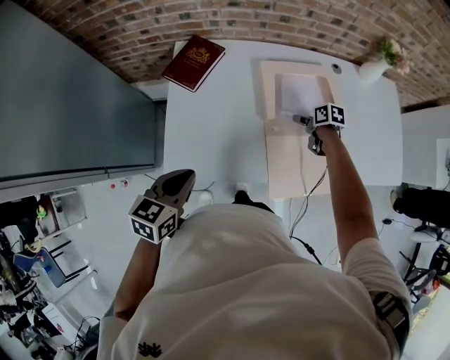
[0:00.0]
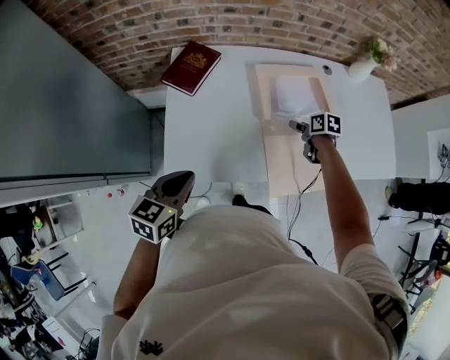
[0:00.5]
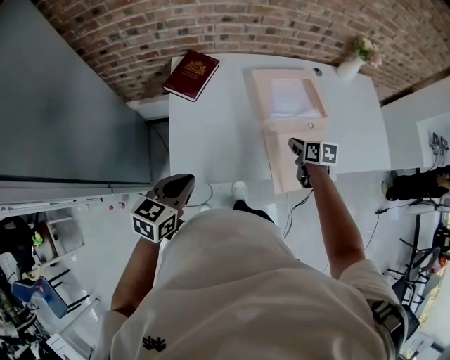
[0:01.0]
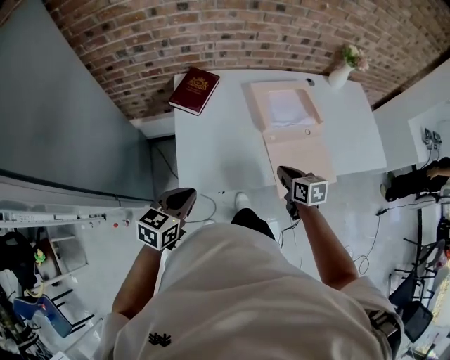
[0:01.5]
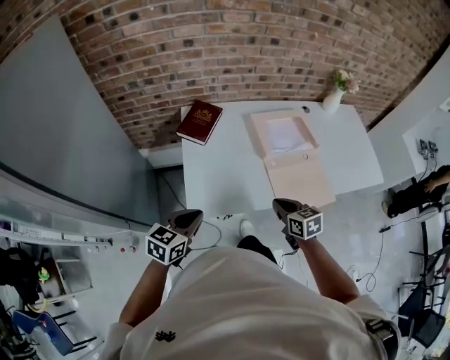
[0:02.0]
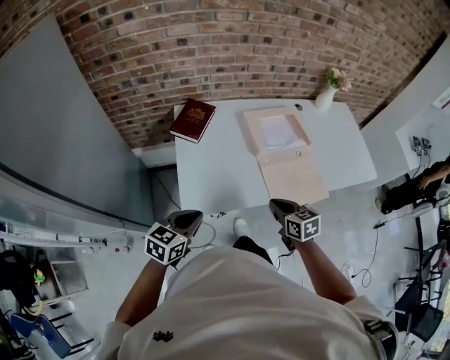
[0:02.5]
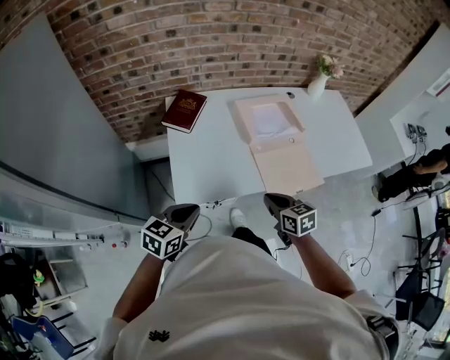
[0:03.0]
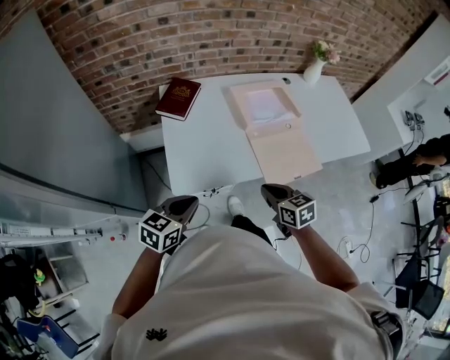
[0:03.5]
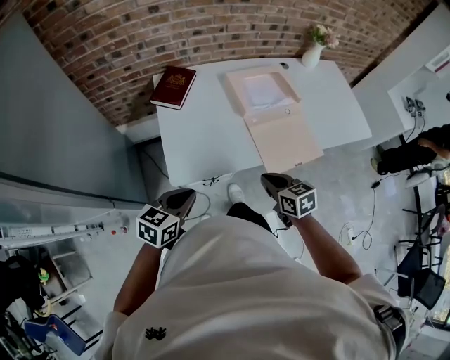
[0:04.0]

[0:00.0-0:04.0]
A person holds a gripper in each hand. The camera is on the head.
0:00.0 to 0:02.0: The right gripper goes roughly 40 cm backward, to the left and upward, turns by about 30 degrees, and closes up; the left gripper heads to the left and backward, covering approximately 15 cm.
0:02.0 to 0:04.0: The right gripper is displaced backward by approximately 5 cm, while the left gripper ends up roughly 5 cm from where it was.

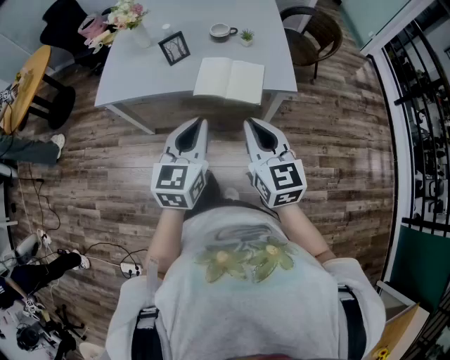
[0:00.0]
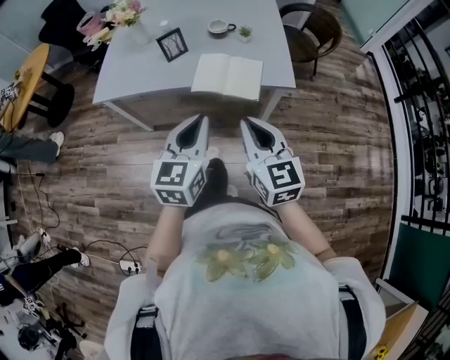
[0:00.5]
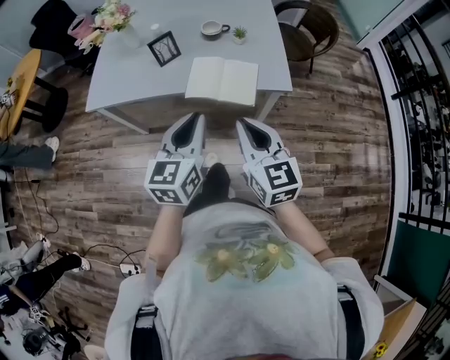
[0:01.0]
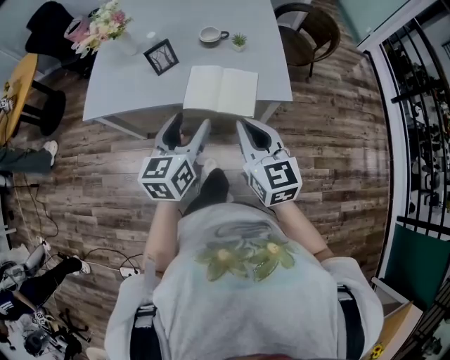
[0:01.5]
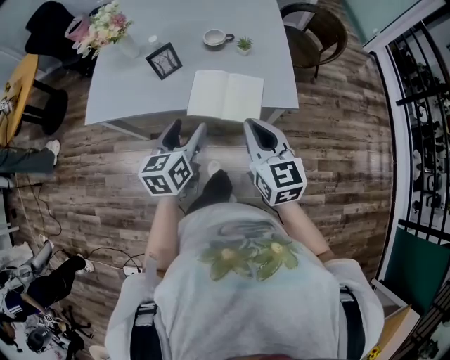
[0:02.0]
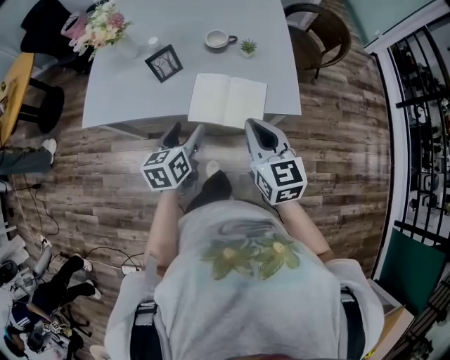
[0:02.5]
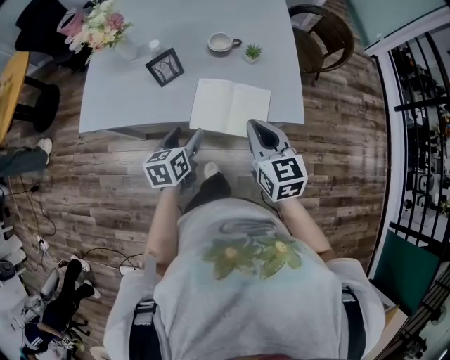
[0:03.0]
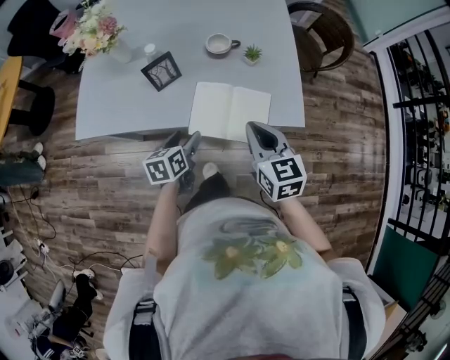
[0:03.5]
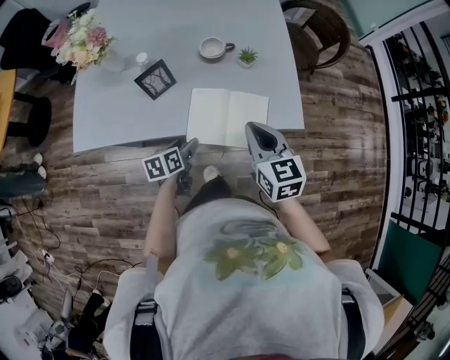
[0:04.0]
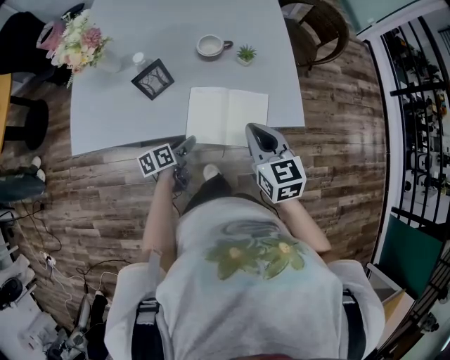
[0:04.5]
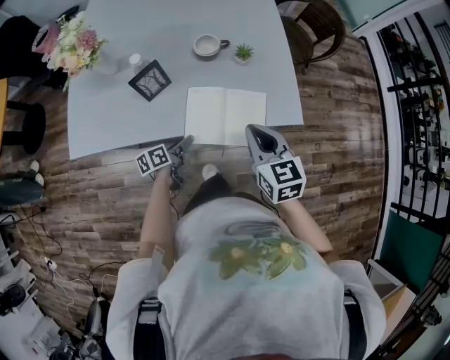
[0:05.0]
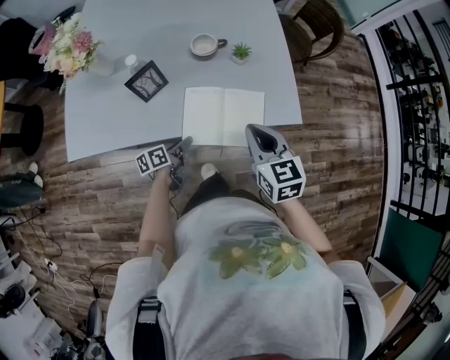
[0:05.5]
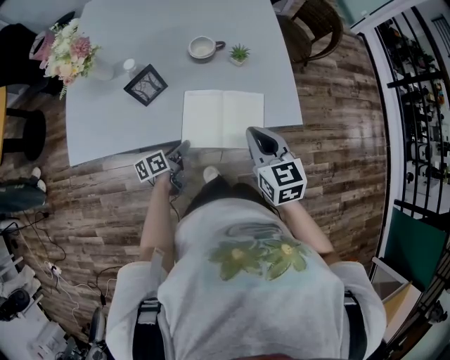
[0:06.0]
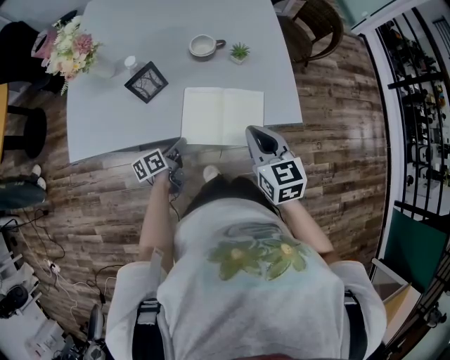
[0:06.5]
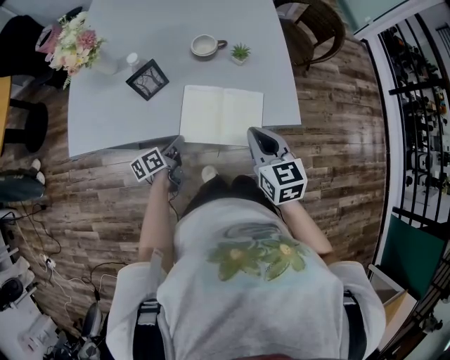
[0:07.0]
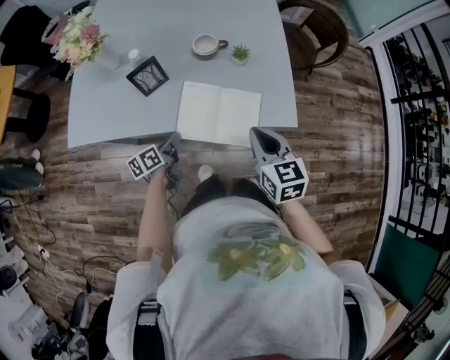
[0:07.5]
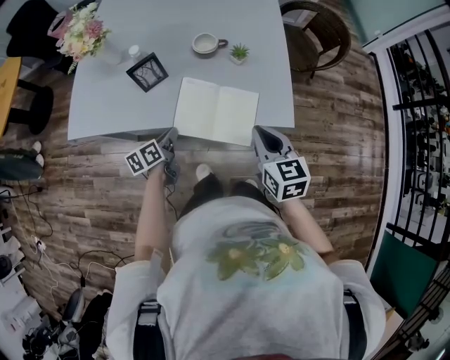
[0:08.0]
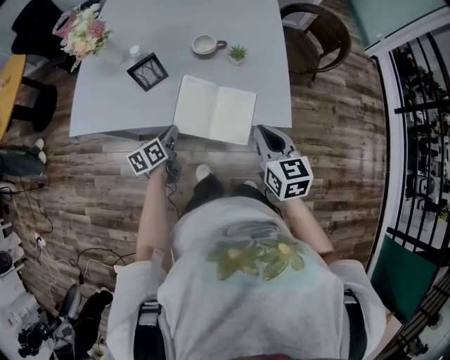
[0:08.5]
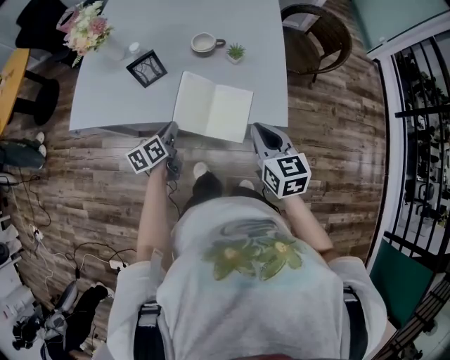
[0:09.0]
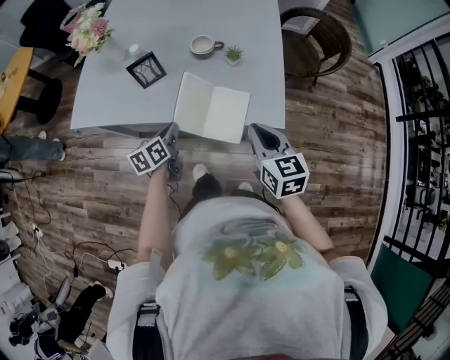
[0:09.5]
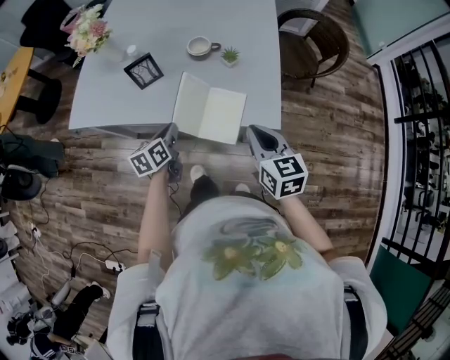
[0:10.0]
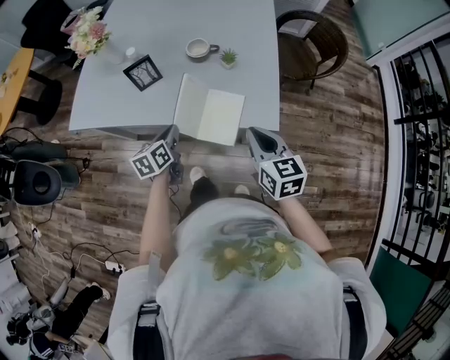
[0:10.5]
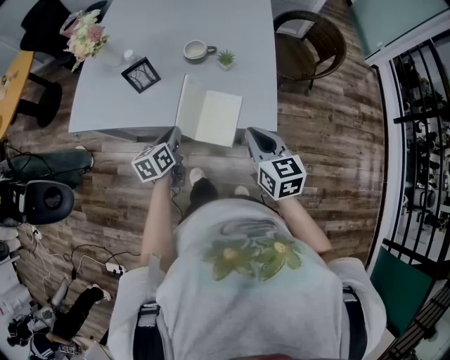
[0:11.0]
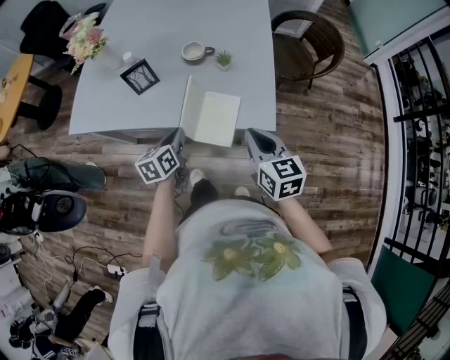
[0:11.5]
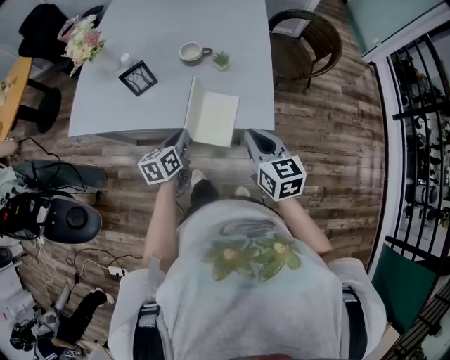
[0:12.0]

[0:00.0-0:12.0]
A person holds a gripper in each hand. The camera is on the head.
0:00.0 to 0:02.0: The right gripper goes approximately 10 cm forward. Meanwhile the left gripper goes approximately 15 cm forward and downward, swivels roughly 20 degrees, and opens up.
0:02.0 to 0:04.0: The right gripper goes approximately 15 cm forward and downward; the left gripper travels downward and forward by roughly 20 cm, and turns by about 30 degrees.
0:04.0 to 0:06.0: The left gripper heads downward, covering roughly 5 cm, rotates roughly 20 degrees, and closes up.
0:06.0 to 0:08.0: The right gripper moves to the right, approximately 5 cm, while the left gripper heads upward, covering about 5 cm, and closes its fingers.
0:08.0 to 0:10.0: The left gripper is displaced upward by approximately 5 cm.
0:10.0 to 0:12.0: The left gripper travels to the right by roughly 5 cm.

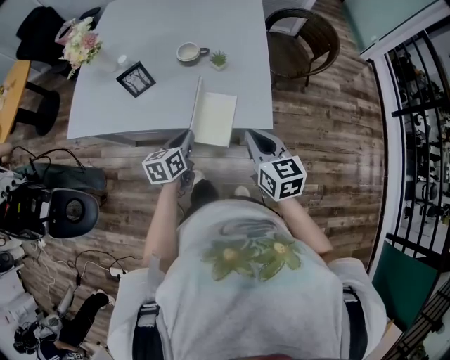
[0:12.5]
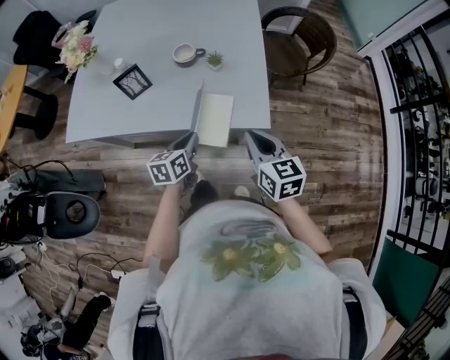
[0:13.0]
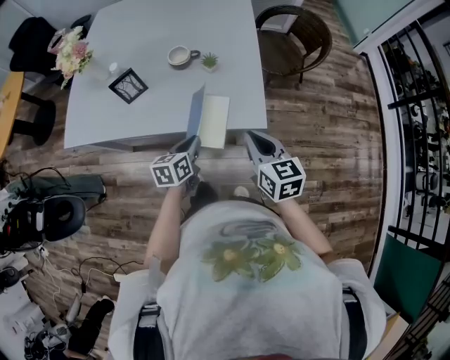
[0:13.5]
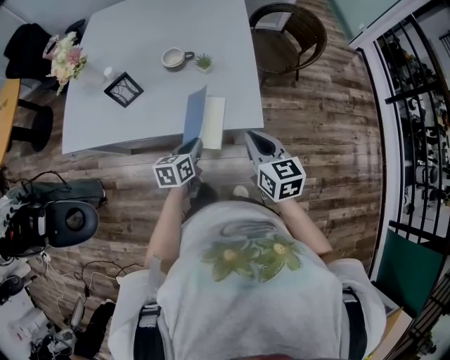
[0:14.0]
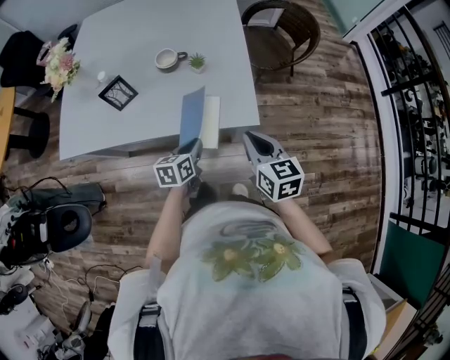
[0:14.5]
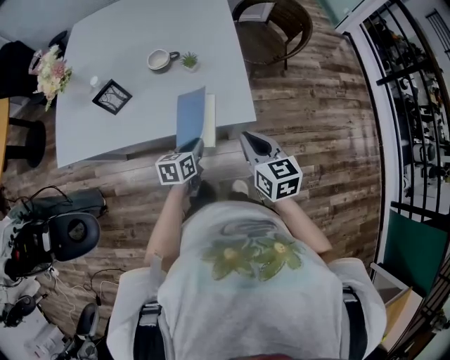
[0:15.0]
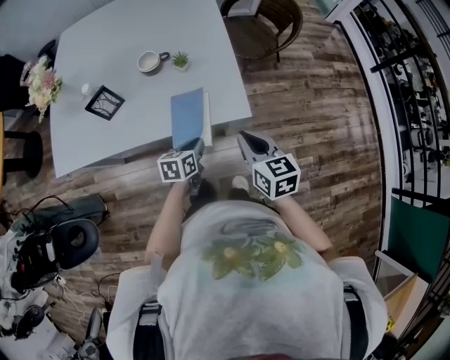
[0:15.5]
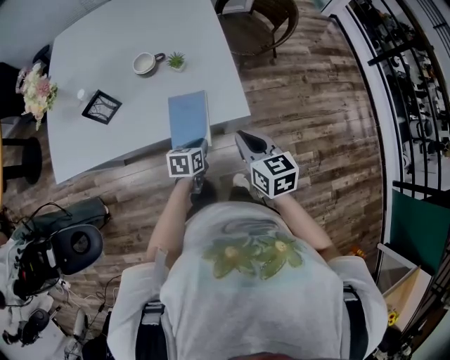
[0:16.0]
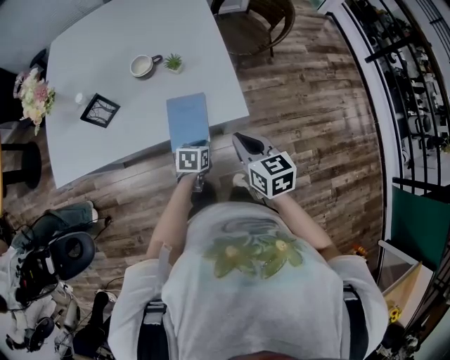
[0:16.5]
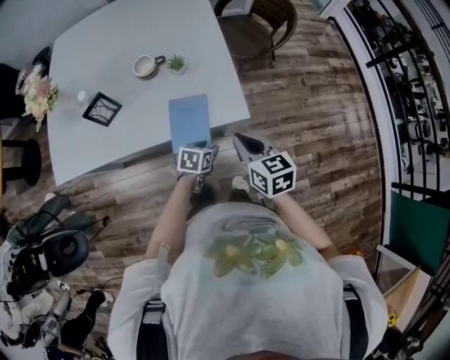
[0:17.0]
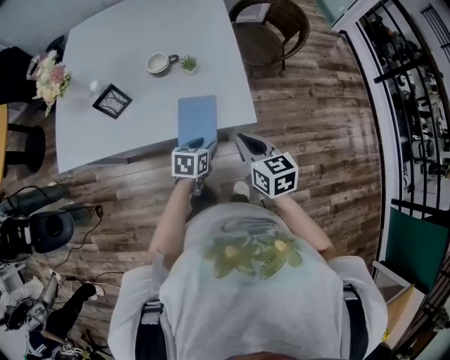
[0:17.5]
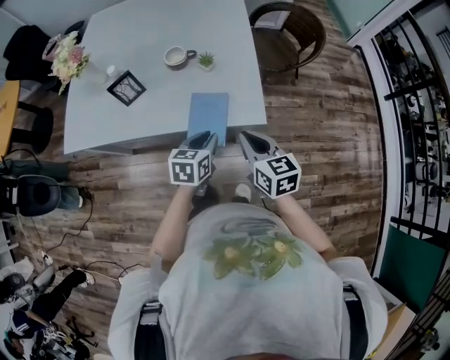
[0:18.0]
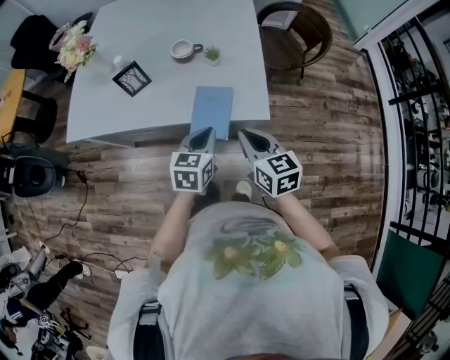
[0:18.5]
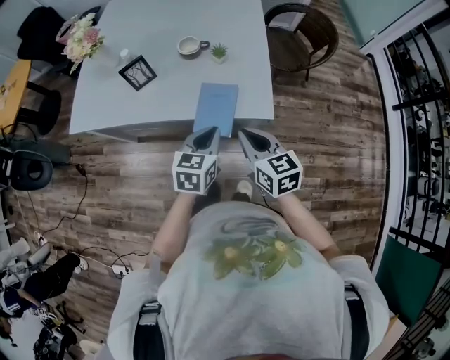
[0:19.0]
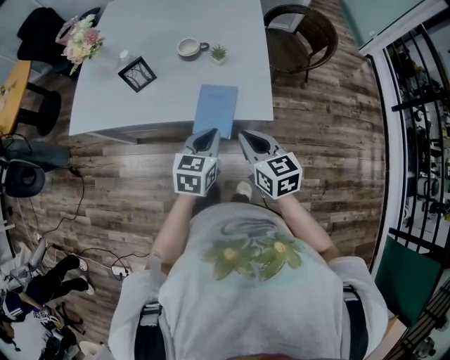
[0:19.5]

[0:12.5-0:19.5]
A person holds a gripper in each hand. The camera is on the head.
0:12.5 to 0:14.5: The left gripper goes roughly 5 cm to the right.
0:14.5 to 0:16.0: The left gripper travels downward by some 5 cm.
0:16.0 to 0:17.5: The left gripper opens its fingers.
0:17.5 to 0:19.5: The left gripper travels upward by some 15 cm, changes its angle by roughly 20 degrees, and closes. Meanwhile the right gripper shifts by about 5 cm.

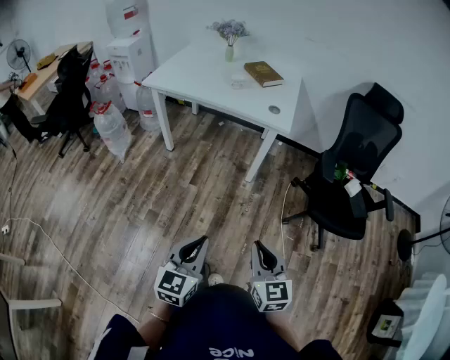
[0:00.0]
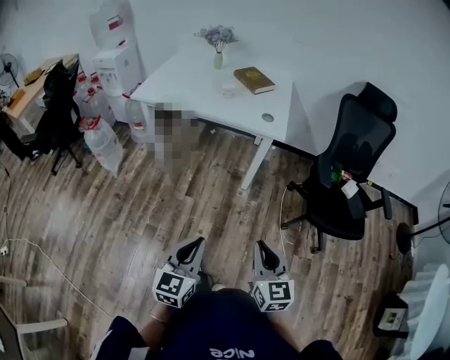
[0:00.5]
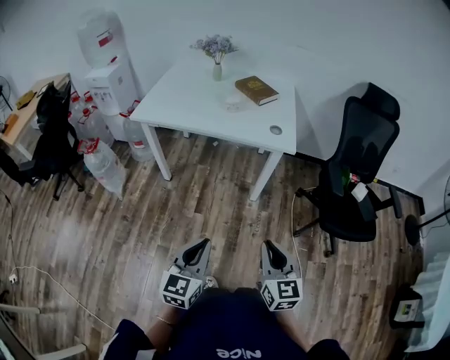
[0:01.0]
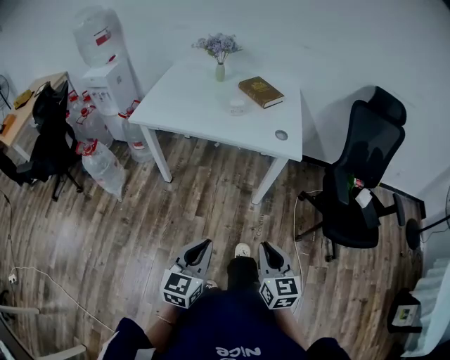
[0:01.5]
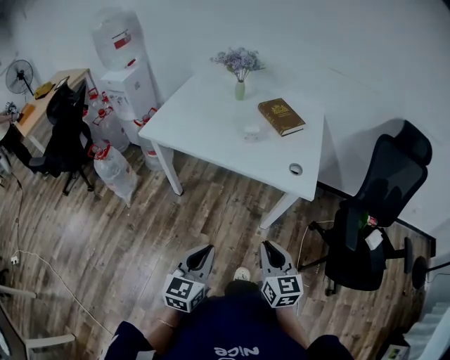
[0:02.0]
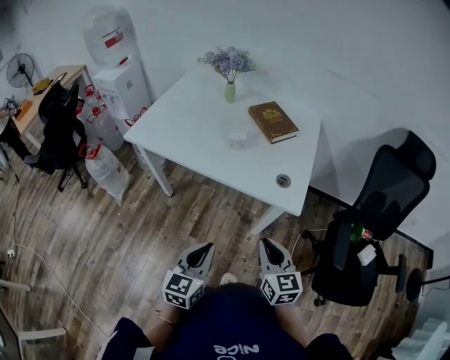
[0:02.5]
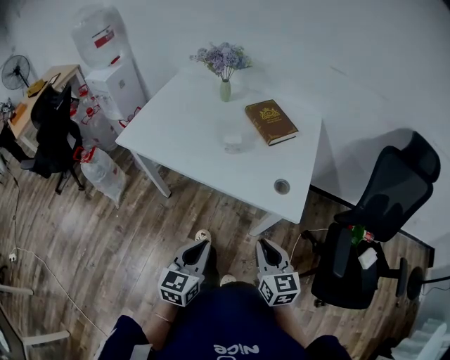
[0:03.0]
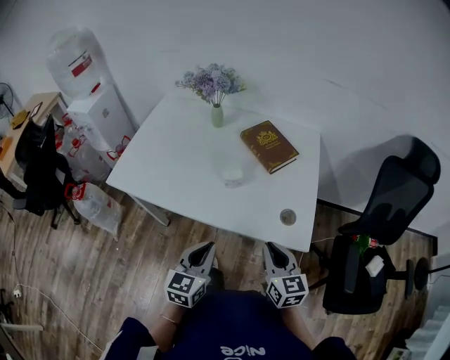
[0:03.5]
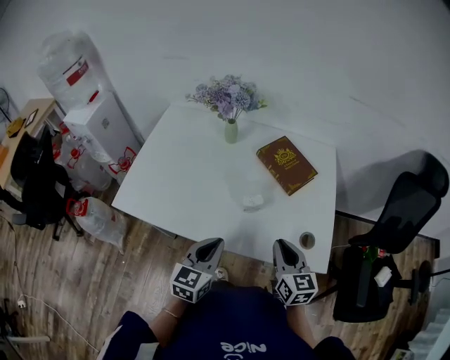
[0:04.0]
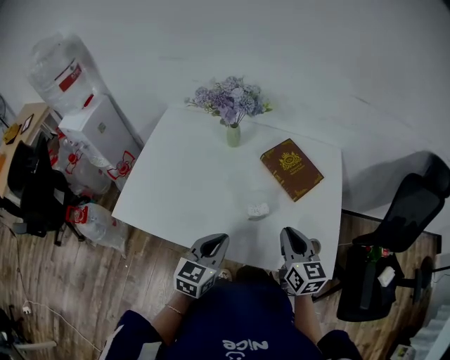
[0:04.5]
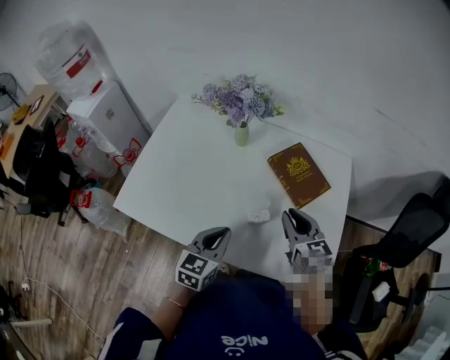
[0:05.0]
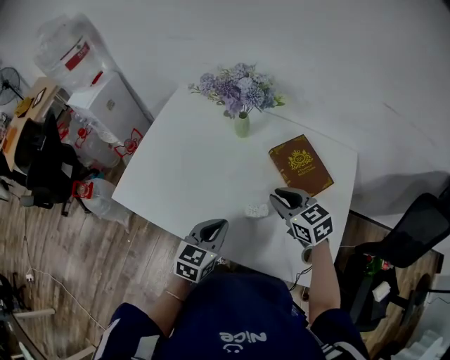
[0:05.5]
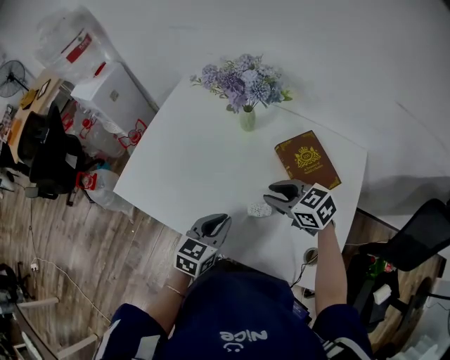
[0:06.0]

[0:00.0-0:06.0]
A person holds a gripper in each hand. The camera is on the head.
0:00.0 to 0:02.0: Both grippers travel together forward, roughly 35 cm.
0:02.0 to 0:04.0: The grippers both shift forward by some 40 cm.
0:04.0 to 0:06.0: The right gripper ends up about 20 cm from where it was, changes its angle by roughly 60 degrees, and opens up. Meanwhile the left gripper shifts by roughly 15 cm.
